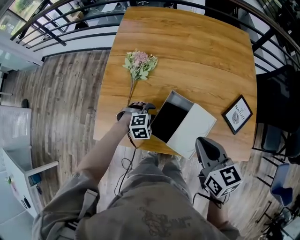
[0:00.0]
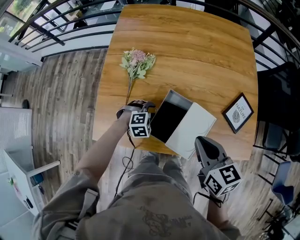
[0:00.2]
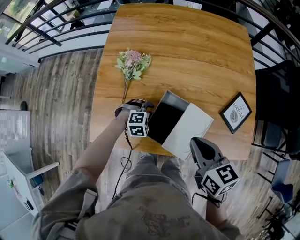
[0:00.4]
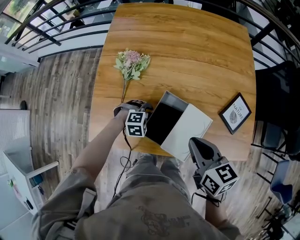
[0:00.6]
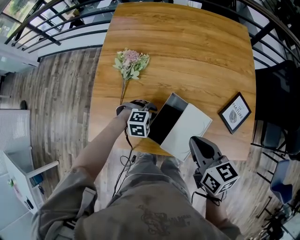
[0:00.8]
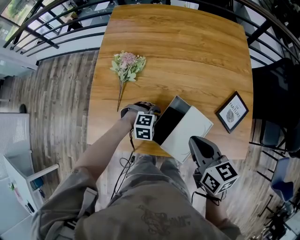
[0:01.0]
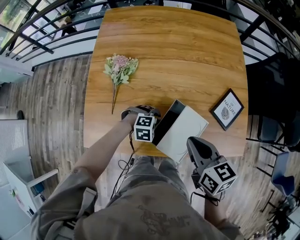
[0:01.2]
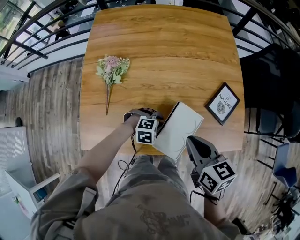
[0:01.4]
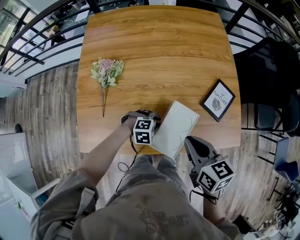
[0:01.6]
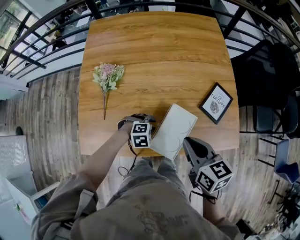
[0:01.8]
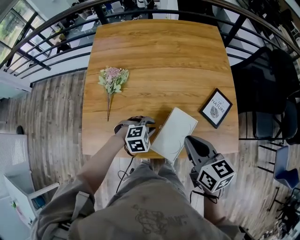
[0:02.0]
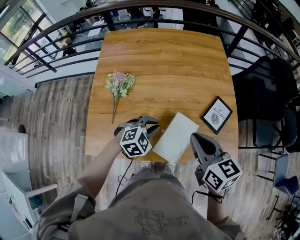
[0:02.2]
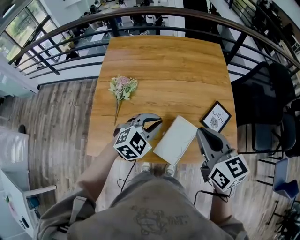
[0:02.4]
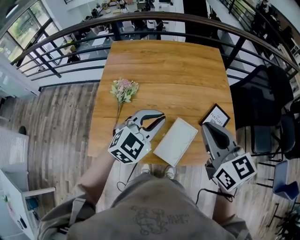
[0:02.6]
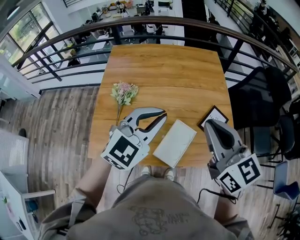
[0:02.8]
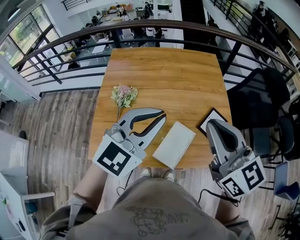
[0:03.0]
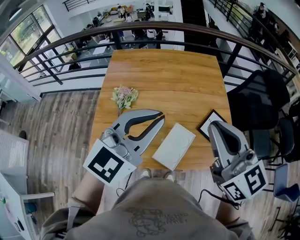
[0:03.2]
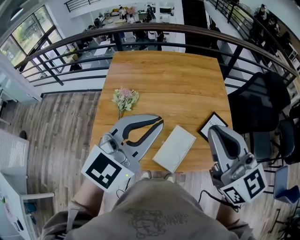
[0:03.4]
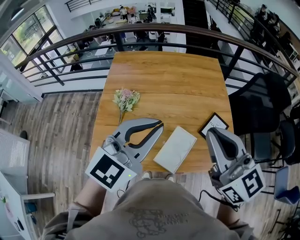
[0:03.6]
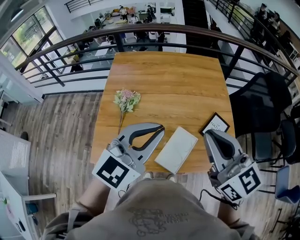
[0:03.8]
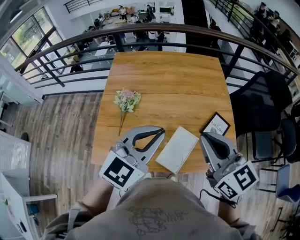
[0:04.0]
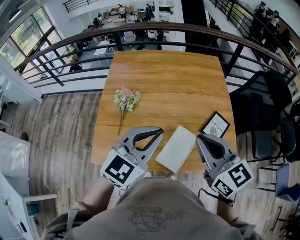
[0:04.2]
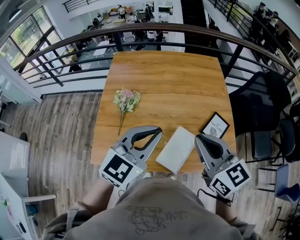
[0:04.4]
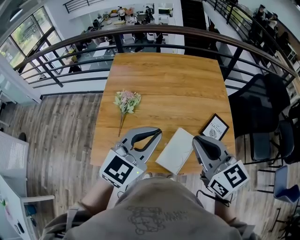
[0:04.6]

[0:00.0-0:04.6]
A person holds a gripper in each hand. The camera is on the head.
0:00.0 to 0:01.6: The right gripper heads to the right, covering approximately 5 cm, while the left gripper goes roughly 15 cm to the right, and changes its angle by about 20 degrees.
0:01.6 to 0:03.0: The right gripper goes some 25 cm upward, and rotates about 40 degrees. Meanwhile the left gripper is displaced upward by about 50 cm, and points its fingers roughly 60 degrees further upward.
0:03.0 to 0:04.6: The left gripper shifts roughly 5 cm downward. Meanwhile the right gripper heads downward, covering some 10 cm.

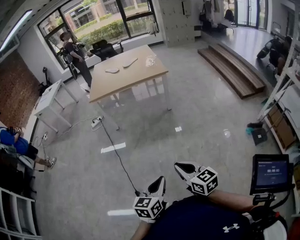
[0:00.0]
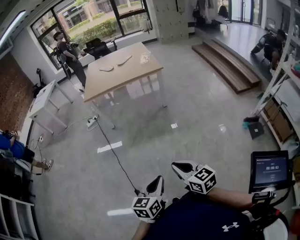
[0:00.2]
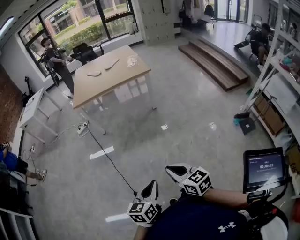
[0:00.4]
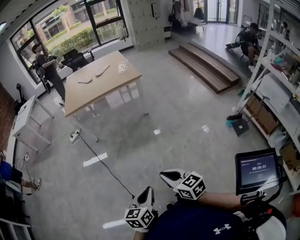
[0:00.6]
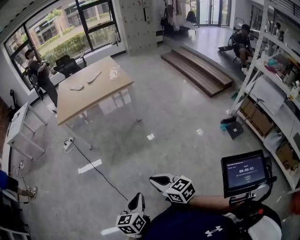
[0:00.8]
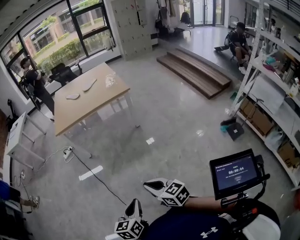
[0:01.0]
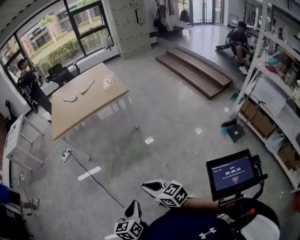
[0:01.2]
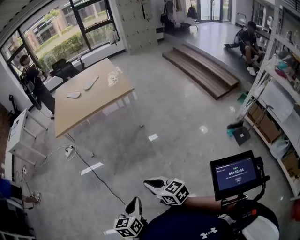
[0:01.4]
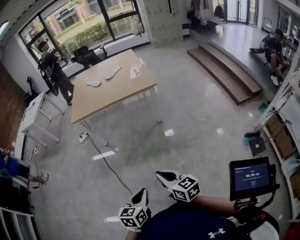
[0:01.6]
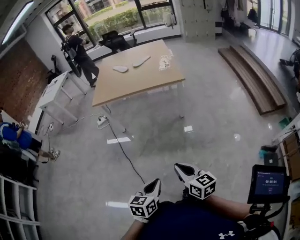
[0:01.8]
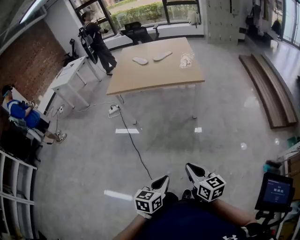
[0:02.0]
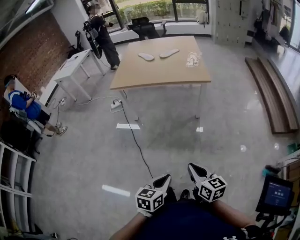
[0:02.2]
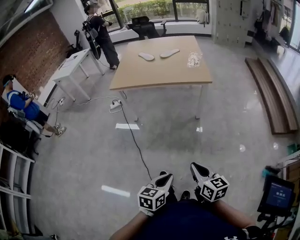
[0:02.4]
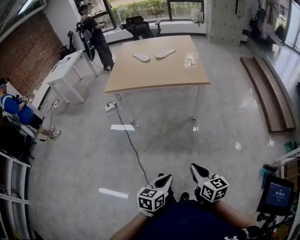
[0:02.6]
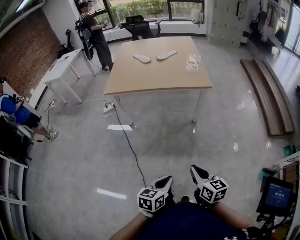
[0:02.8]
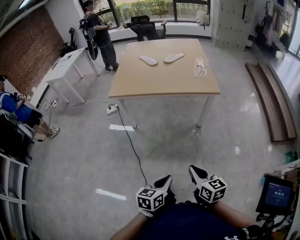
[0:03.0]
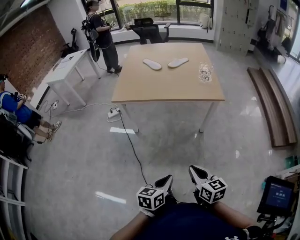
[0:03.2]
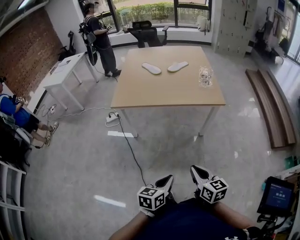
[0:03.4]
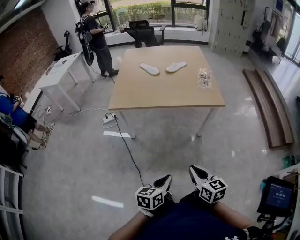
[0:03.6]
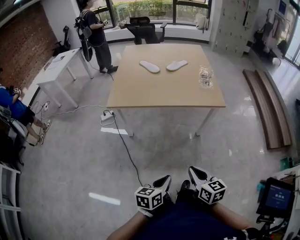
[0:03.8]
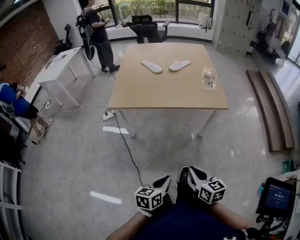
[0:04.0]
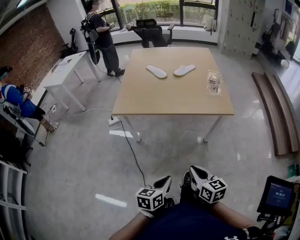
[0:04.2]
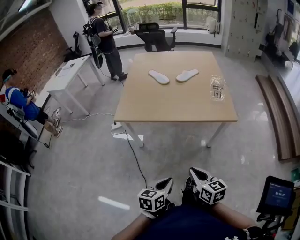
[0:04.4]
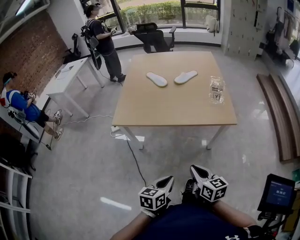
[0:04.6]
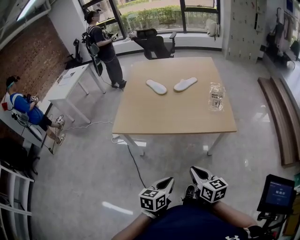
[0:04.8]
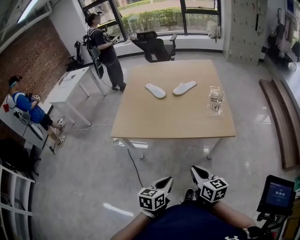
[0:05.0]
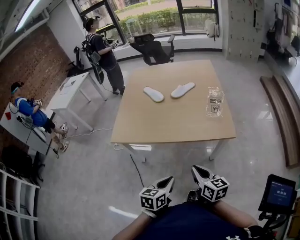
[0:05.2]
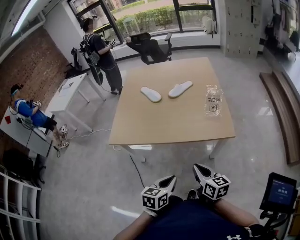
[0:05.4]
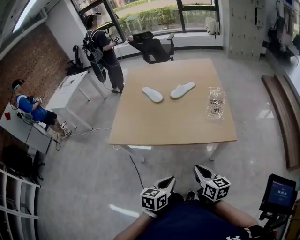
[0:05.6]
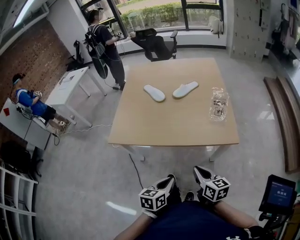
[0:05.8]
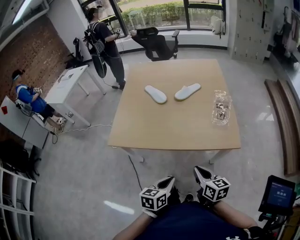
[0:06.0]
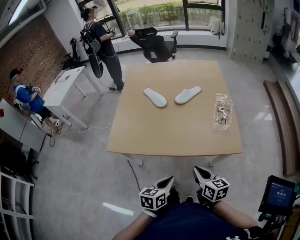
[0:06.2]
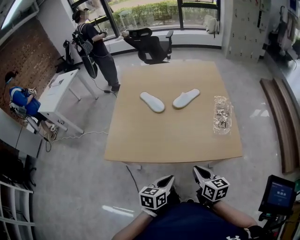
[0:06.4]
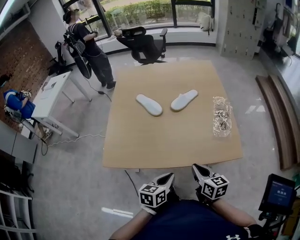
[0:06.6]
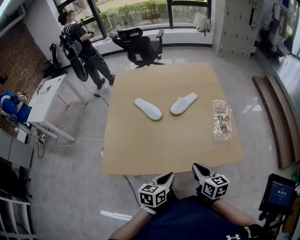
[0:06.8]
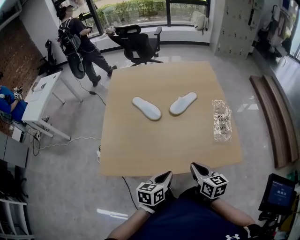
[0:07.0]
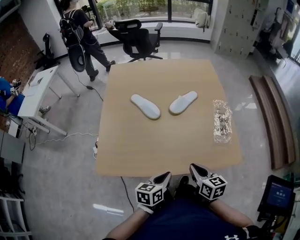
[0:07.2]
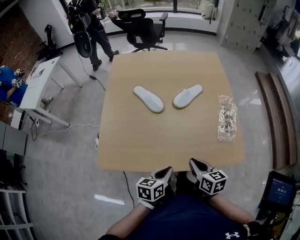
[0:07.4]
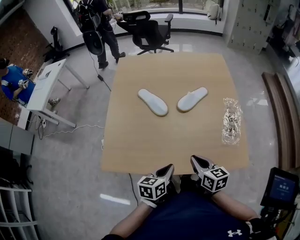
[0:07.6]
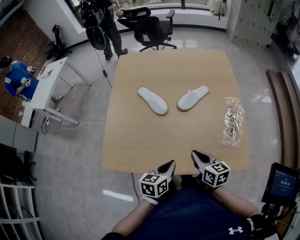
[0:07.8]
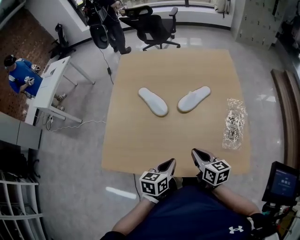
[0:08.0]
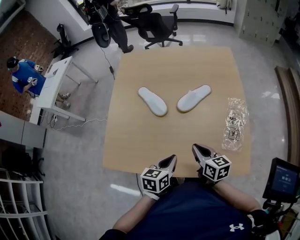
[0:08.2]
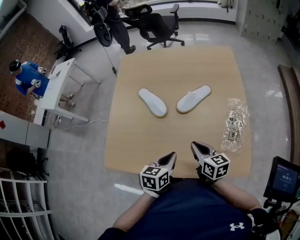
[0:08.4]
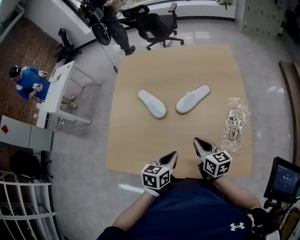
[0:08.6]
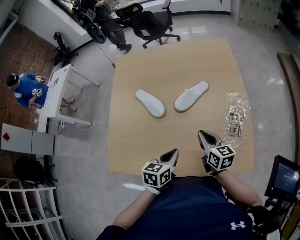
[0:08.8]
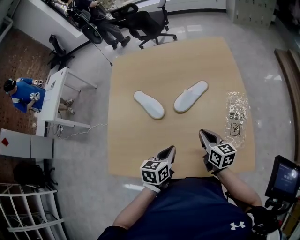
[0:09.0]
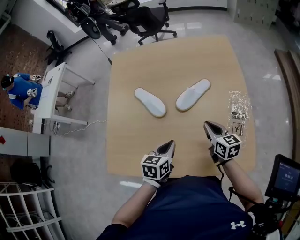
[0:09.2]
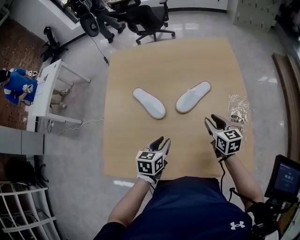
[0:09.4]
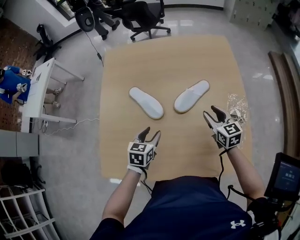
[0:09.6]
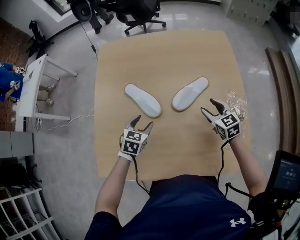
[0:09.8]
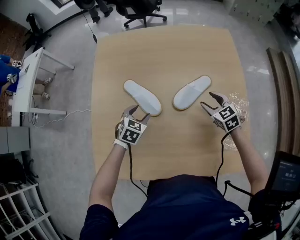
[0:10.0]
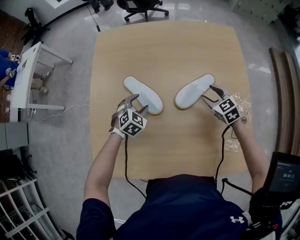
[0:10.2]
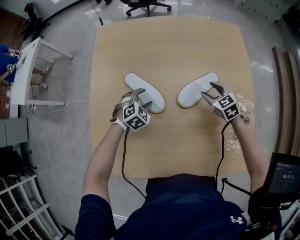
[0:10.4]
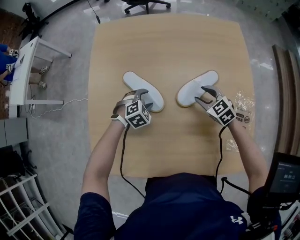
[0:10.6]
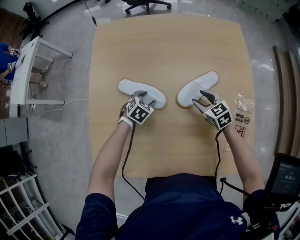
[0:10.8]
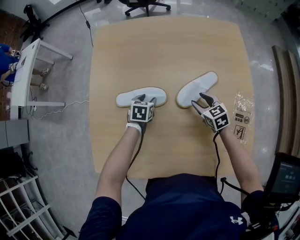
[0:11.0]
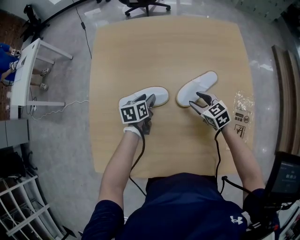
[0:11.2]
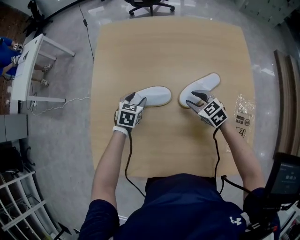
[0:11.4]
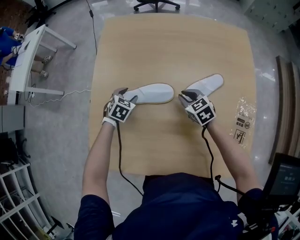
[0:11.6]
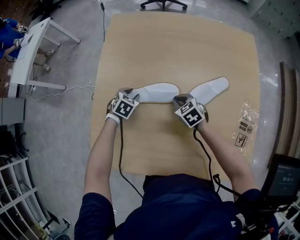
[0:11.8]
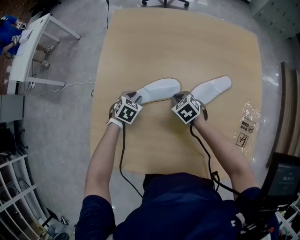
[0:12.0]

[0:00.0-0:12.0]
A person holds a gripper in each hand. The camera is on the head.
0:00.0 to 0:01.6: The grippers both shift forward by about 20 cm.
0:01.6 to 0:03.0: Both grippers move forward, about 15 cm.
0:03.0 to 0:04.4: Both grippers travel together forward, approximately 20 cm.
0:04.4 to 0:06.0: The two grippers go some 20 cm forward.
0:06.0 to 0:07.6: The grippers both shift forward by some 25 cm.
0:07.6 to 0:09.0: The right gripper shifts roughly 15 cm forward and to the right. Meanwhile the left gripper heads forward, covering approximately 10 cm.
0:09.0 to 0:10.4: The right gripper goes about 25 cm forward and downward, rotates around the line of its fingers by about 40 degrees, counterclockwise from behind, and opens up. Meanwhile the left gripper goes approximately 30 cm forward, downward and to the left, twists roughly 60 degrees clockwise, seen from behind, and opens.
0:10.4 to 0:12.0: The right gripper shifts about 20 cm to the left, and closes its fingers; the left gripper is displaced to the left by roughly 10 cm, swivels approximately 30 degrees, and closes.

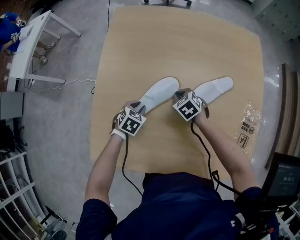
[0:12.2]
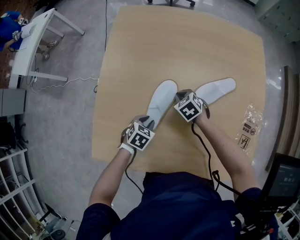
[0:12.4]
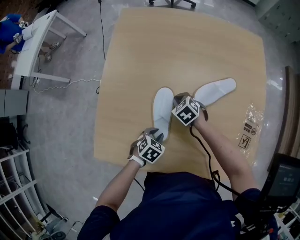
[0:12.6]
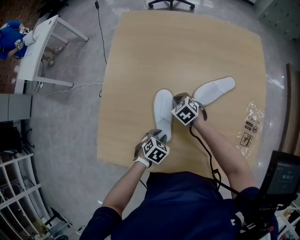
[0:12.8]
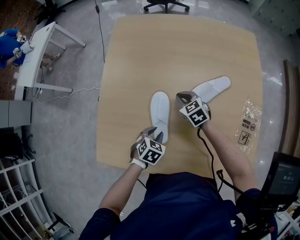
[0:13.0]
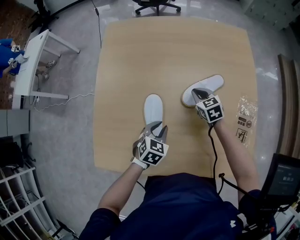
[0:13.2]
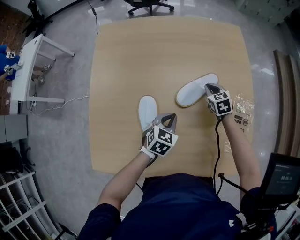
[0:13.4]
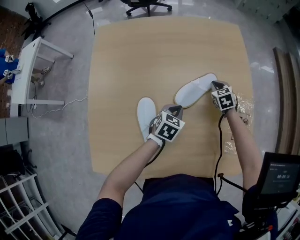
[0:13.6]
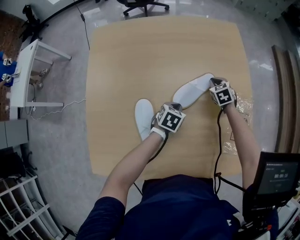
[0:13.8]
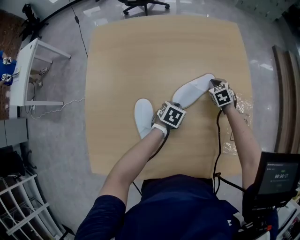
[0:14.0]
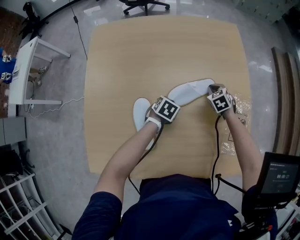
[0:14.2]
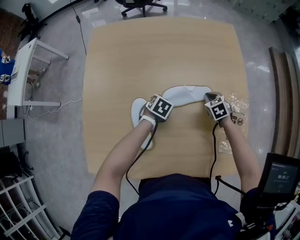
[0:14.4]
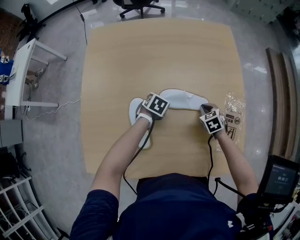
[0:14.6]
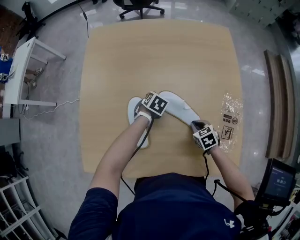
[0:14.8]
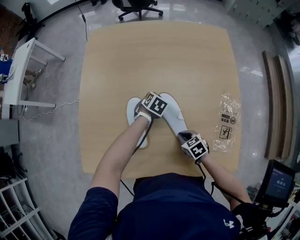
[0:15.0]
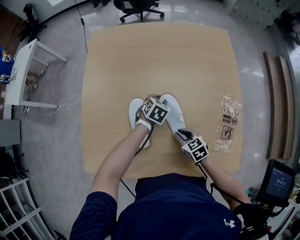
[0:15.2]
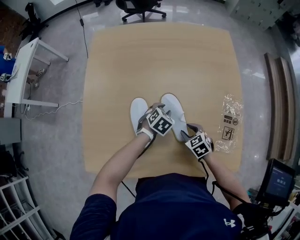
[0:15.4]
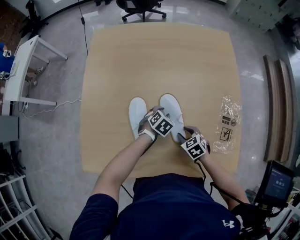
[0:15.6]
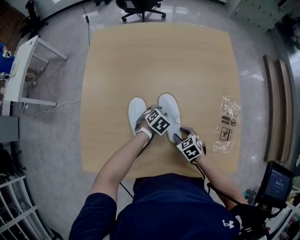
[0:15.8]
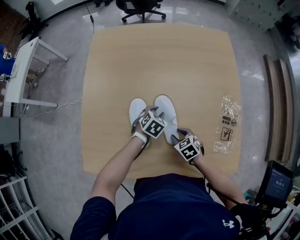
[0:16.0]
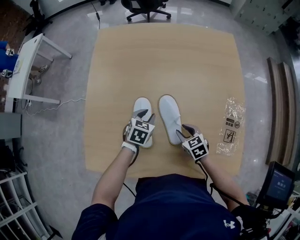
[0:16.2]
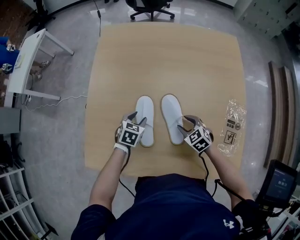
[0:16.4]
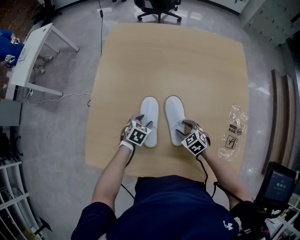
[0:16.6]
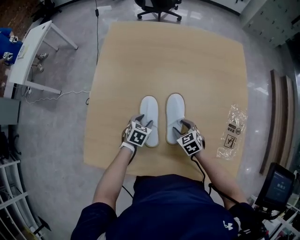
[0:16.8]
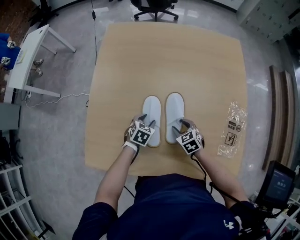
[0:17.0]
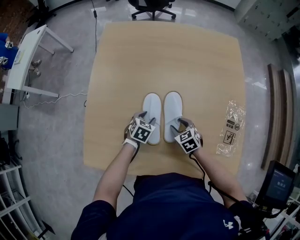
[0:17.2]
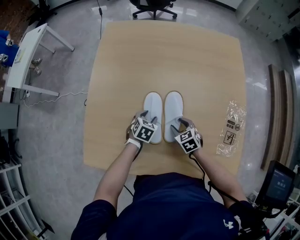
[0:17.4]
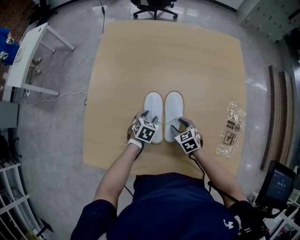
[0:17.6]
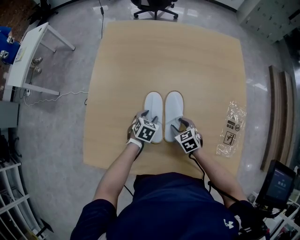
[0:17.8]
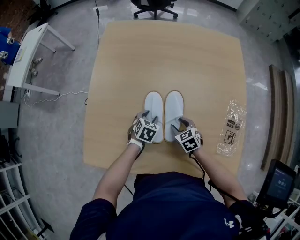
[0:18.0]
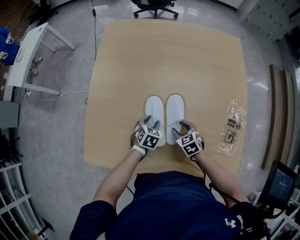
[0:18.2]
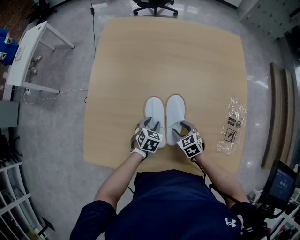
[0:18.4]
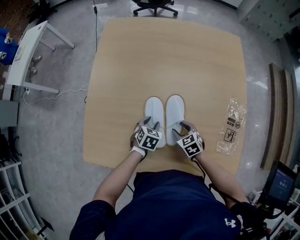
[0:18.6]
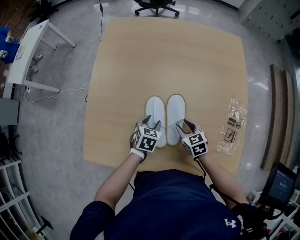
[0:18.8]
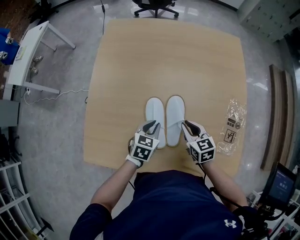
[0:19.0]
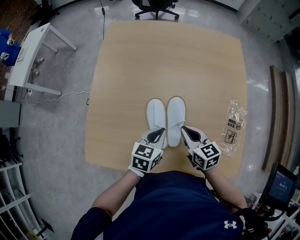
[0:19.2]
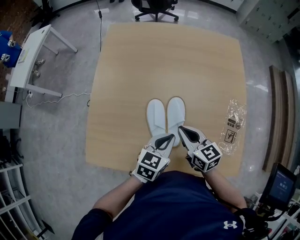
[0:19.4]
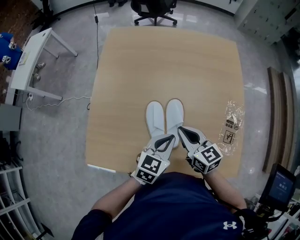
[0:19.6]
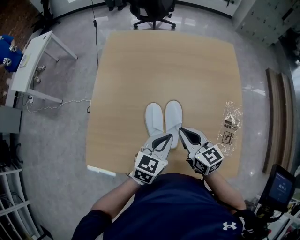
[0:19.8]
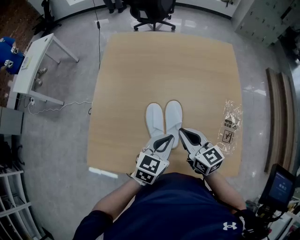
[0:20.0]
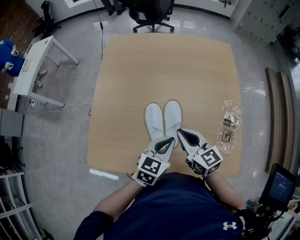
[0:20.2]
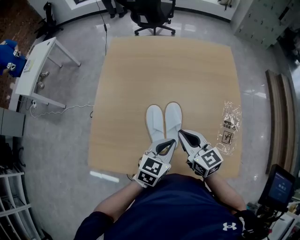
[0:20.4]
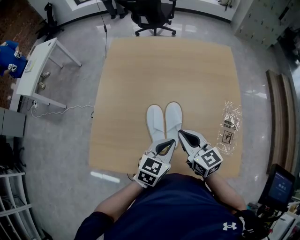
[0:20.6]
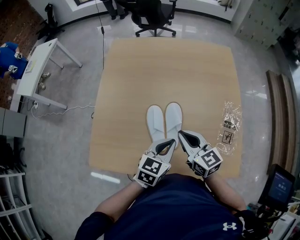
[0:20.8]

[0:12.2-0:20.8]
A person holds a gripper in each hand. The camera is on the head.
0:12.2 to 0:13.6: The left gripper ends up roughly 25 cm from where it was, and closes. The right gripper moves about 30 cm, and changes its angle by roughly 30 degrees.
0:13.6 to 0:15.0: The left gripper changes place by some 10 cm. The right gripper moves roughly 30 cm, and swivels some 30 degrees.
0:15.0 to 0:16.6: The left gripper travels to the left and backward by roughly 15 cm, and opens; the right gripper shifts roughly 5 cm forward, turns by about 20 degrees, and opens.
0:16.6 to 0:18.0: The grippers make only small movements.
0:18.0 to 0:19.4: The left gripper travels upward, backward and to the right by roughly 20 cm, rotates some 30 degrees, and closes. Meanwhile the right gripper heads upward, covering approximately 20 cm, angles its fingers upward, by approximately 30 degrees, and closes its fingers.
0:19.4 to 0:20.8: The left gripper moves roughly 5 cm. Meanwhile the right gripper travels upward by roughly 5 cm.
